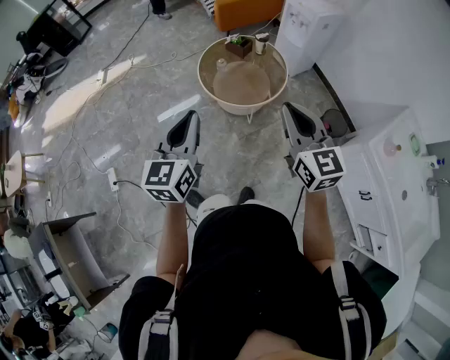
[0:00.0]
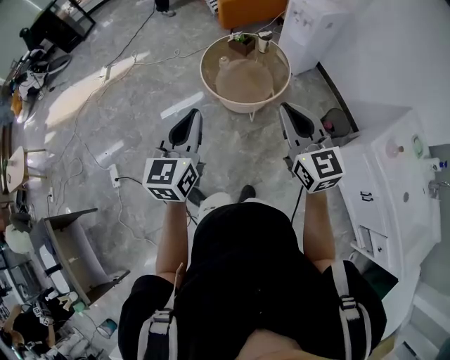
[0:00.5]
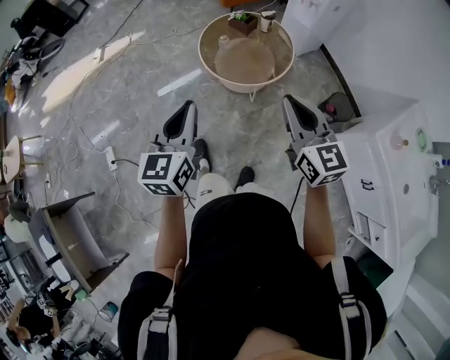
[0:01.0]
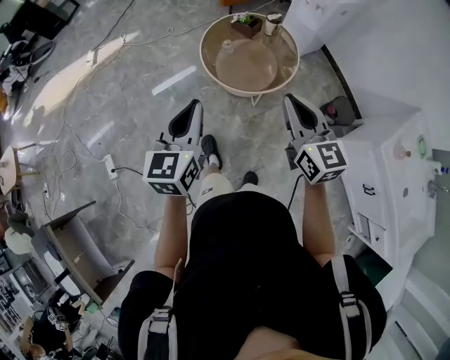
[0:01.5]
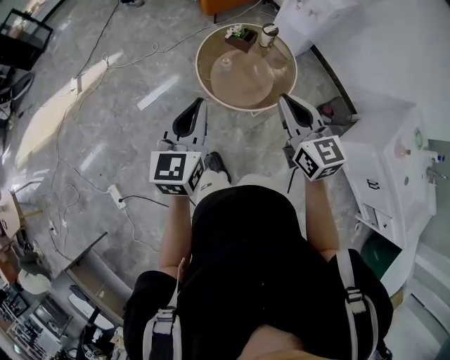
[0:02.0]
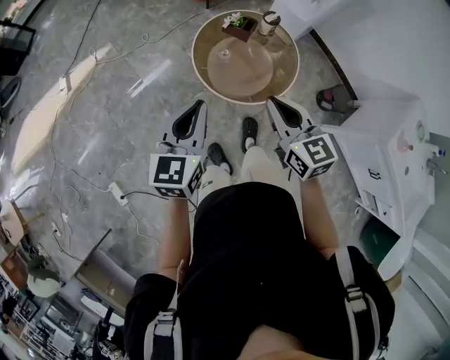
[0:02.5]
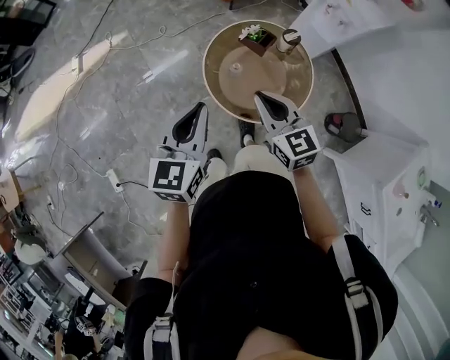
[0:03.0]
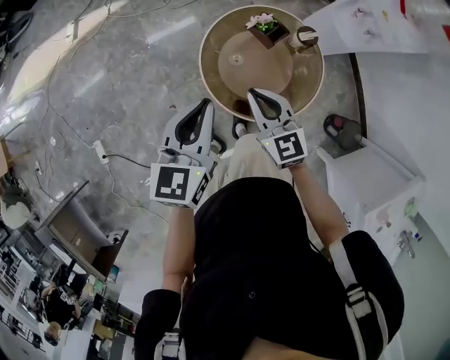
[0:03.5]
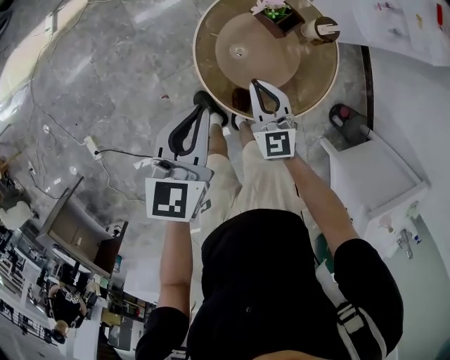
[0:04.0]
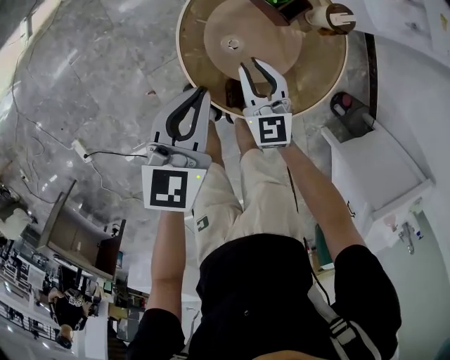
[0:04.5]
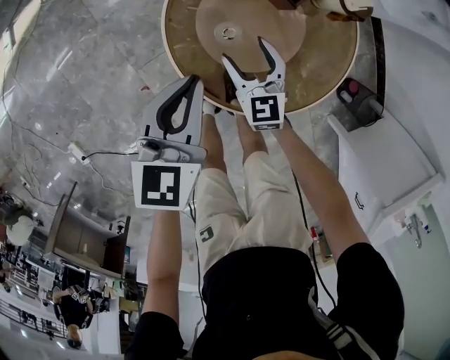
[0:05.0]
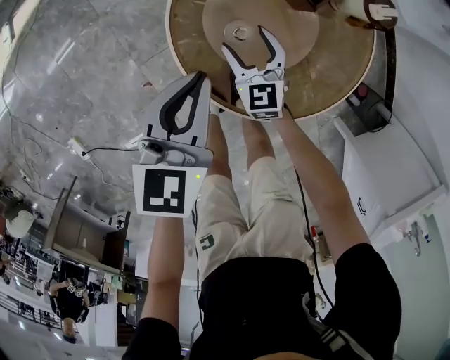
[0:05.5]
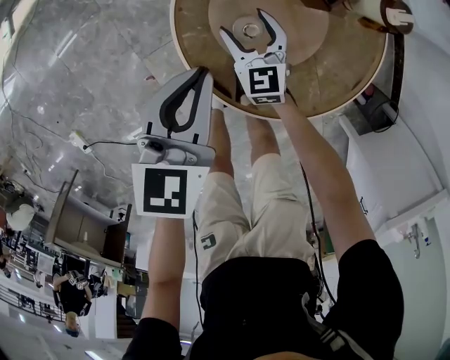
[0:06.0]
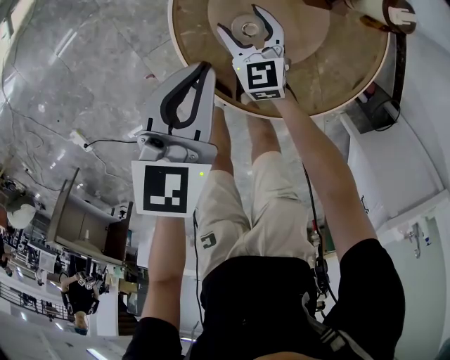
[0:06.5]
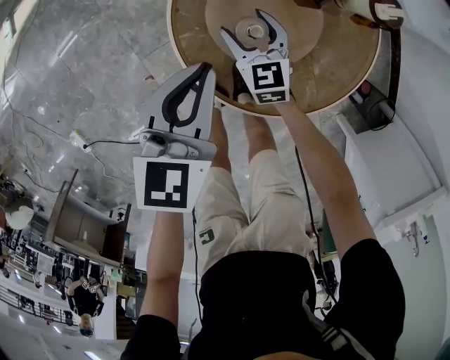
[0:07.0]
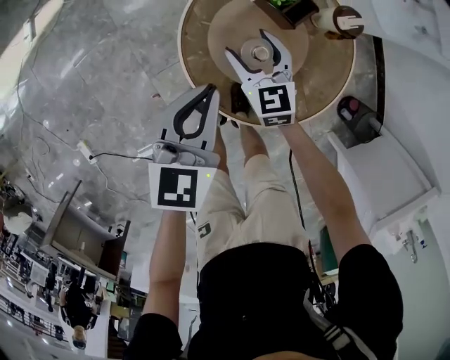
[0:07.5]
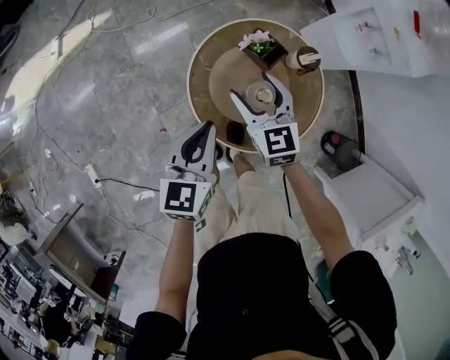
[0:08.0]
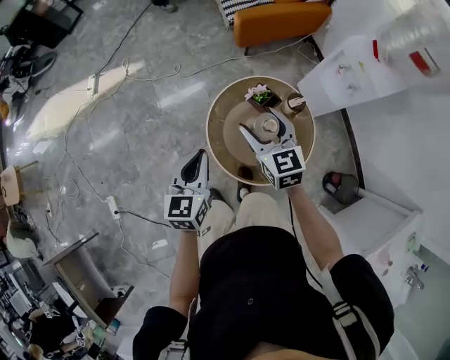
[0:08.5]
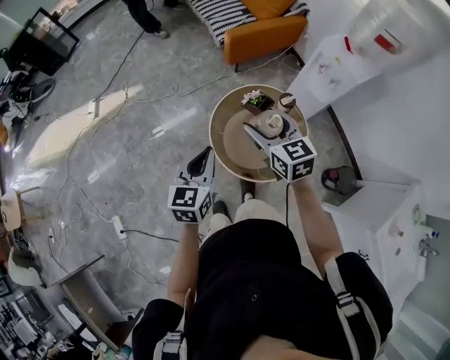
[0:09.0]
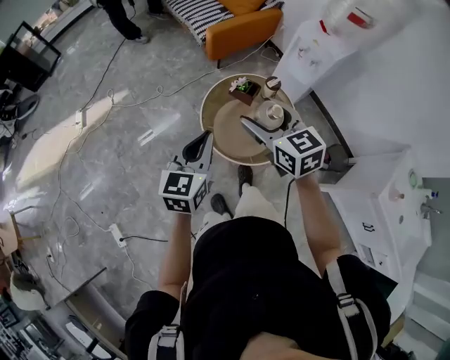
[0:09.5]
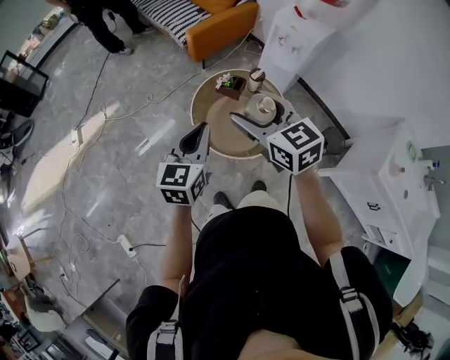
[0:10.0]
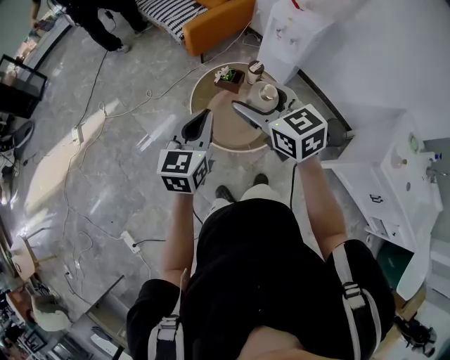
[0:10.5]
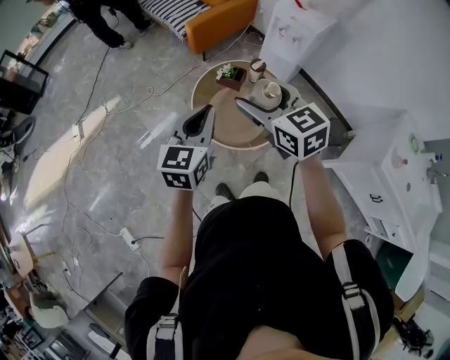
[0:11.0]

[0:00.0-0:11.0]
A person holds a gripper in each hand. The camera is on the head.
0:00.0 to 0:02.0: The grippers both shift forward and to the left by about 25 cm.
0:02.0 to 0:03.5: The two grippers go roughly 25 cm forward and downward. The right gripper rotates some 30 degrees.
0:03.5 to 0:05.5: The grippers both shift downward by some 35 cm. The right gripper opens its fingers.
0:05.5 to 0:07.5: The left gripper is displaced upward by roughly 10 cm. Meanwhile the right gripper shifts some 15 cm upward.
0:07.5 to 0:09.0: The right gripper moves upward, some 40 cm, while the left gripper travels upward and backward by about 30 cm.
0:09.0 to 0:11.0: The right gripper moves backward and upward, approximately 15 cm. Meanwhile the left gripper shifts approximately 10 cm upward.

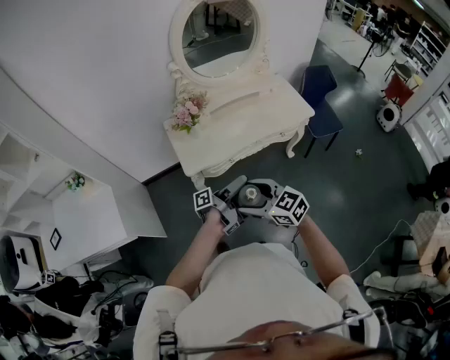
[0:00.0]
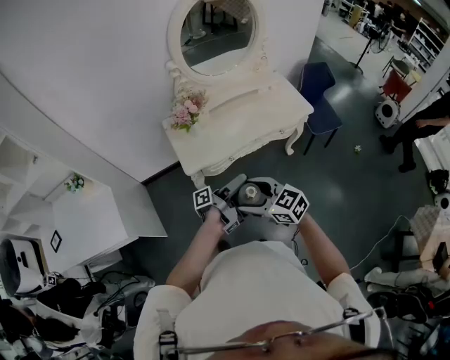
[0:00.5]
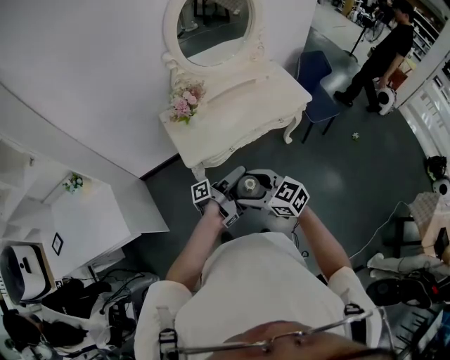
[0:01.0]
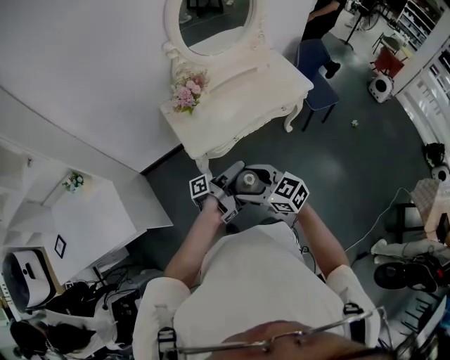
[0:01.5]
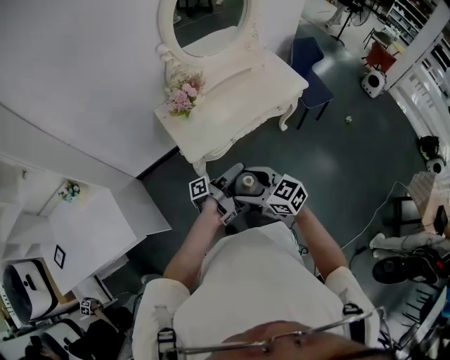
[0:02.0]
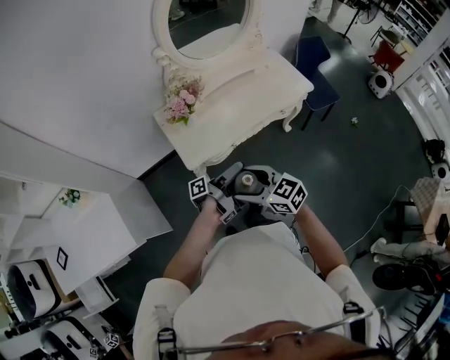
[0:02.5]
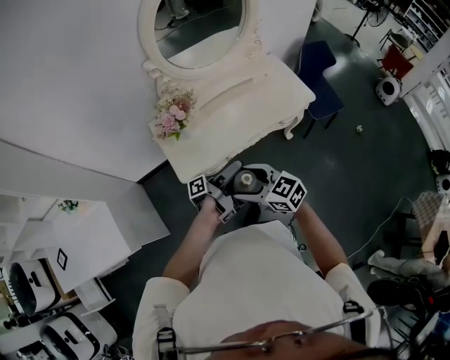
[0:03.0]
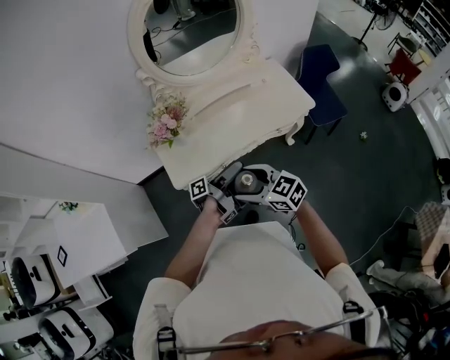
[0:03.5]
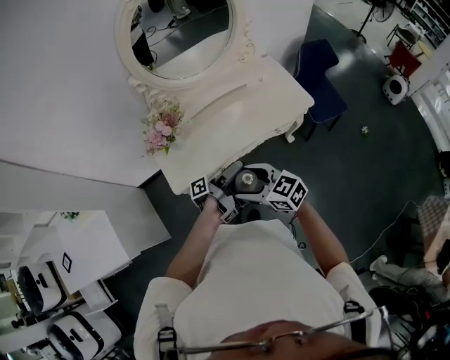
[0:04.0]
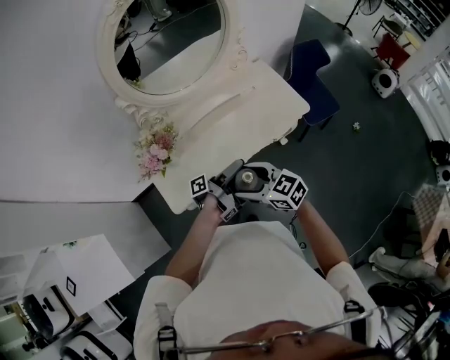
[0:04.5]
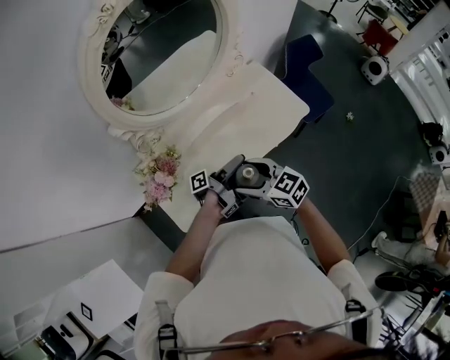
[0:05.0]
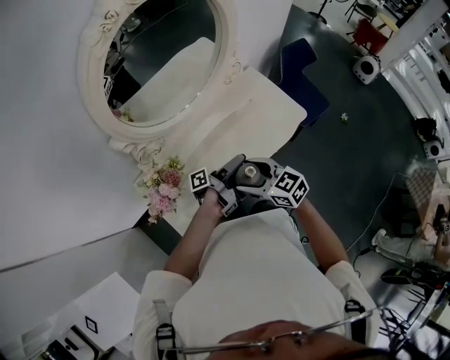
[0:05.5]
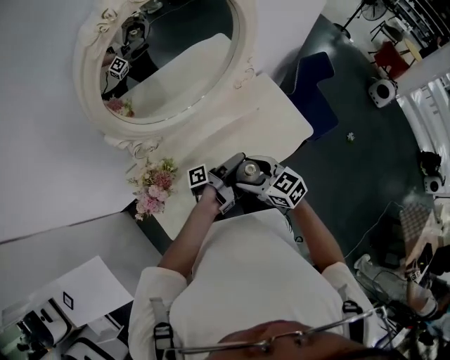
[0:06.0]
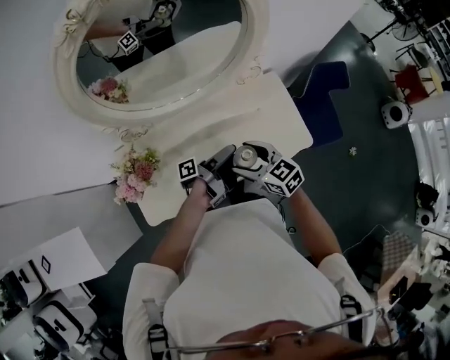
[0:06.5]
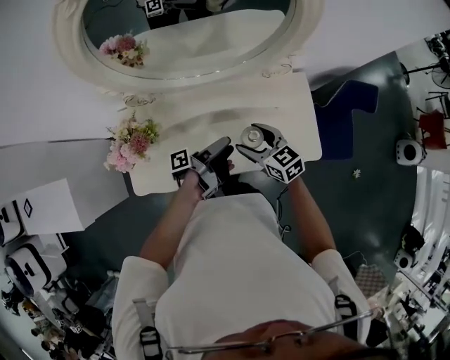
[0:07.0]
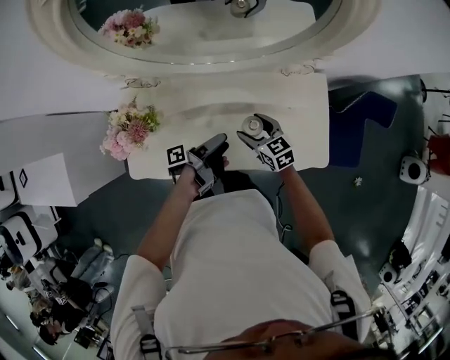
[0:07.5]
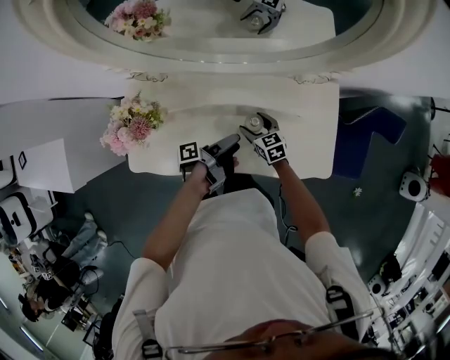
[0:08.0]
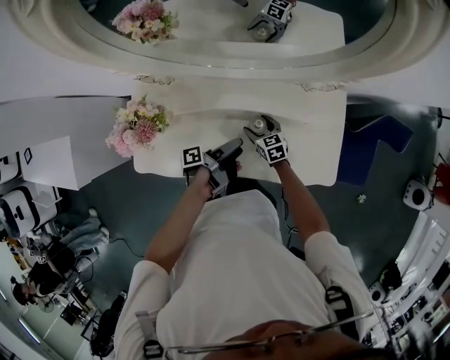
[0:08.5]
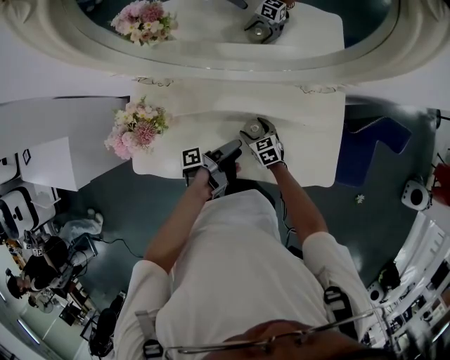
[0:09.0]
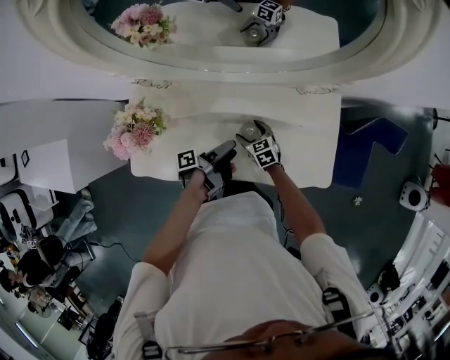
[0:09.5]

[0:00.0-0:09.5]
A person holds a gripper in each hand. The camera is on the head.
0:00.0 to 0:02.0: The right gripper changes place by roughly 10 cm.
0:02.0 to 0:04.0: The right gripper changes place by some 25 cm.
0:04.0 to 0:05.5: The right gripper changes place by about 25 cm.
0:05.5 to 0:07.5: The right gripper changes place by about 30 cm, and swivels roughly 20 degrees.
0:07.5 to 0:09.5: The right gripper goes approximately 15 cm downward.

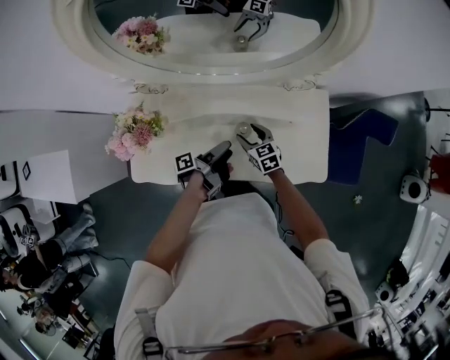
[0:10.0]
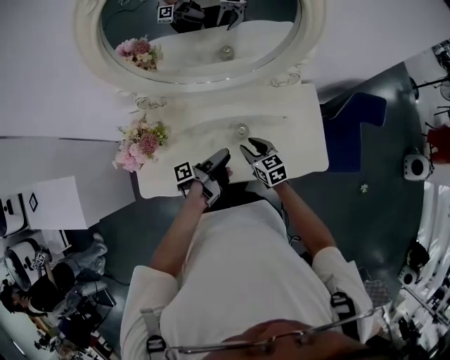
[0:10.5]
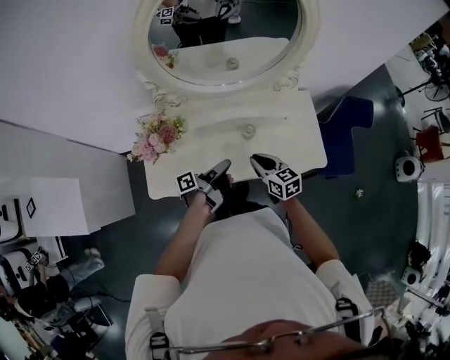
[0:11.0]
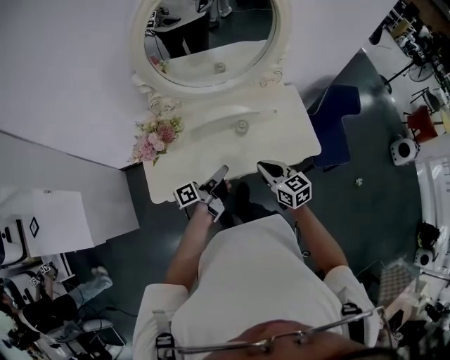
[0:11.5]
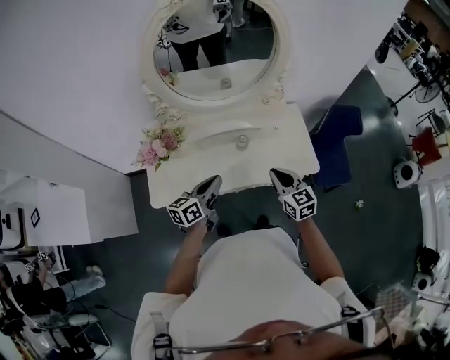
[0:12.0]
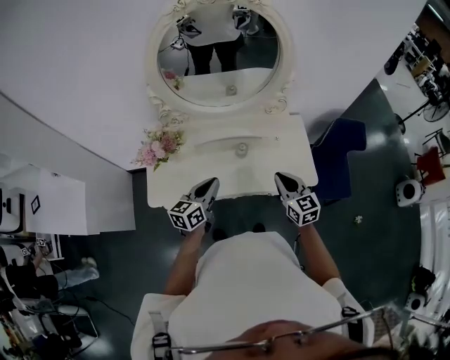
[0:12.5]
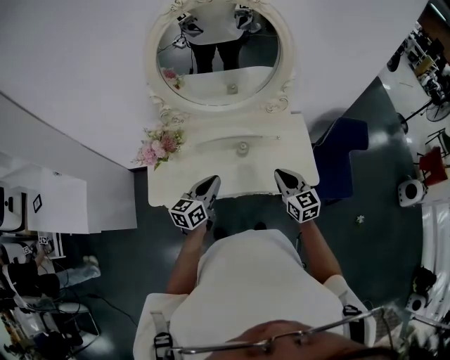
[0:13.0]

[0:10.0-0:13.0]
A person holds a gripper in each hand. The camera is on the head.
0:10.0 to 0:11.5: The right gripper ends up some 30 cm from where it was, and closes.
0:11.5 to 0:13.0: The right gripper changes place by approximately 10 cm.

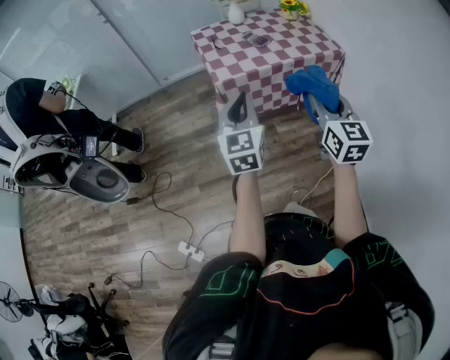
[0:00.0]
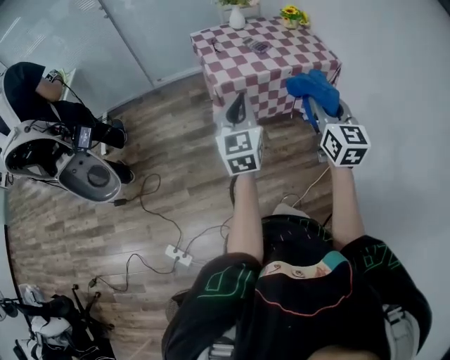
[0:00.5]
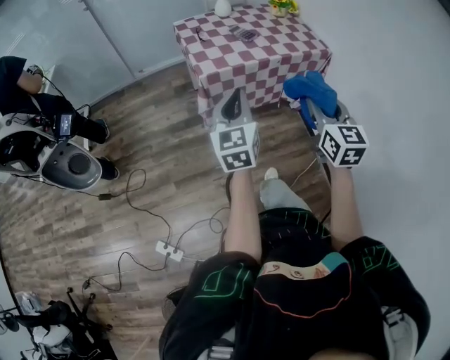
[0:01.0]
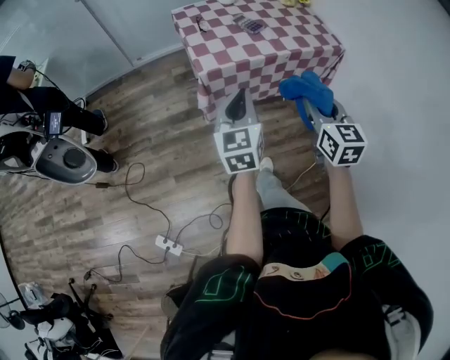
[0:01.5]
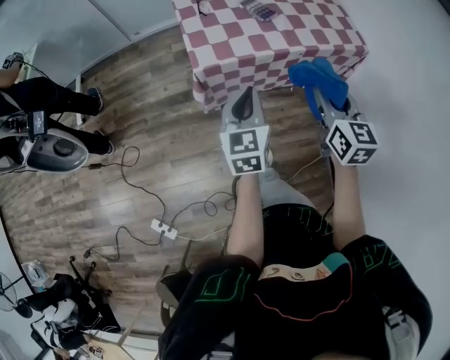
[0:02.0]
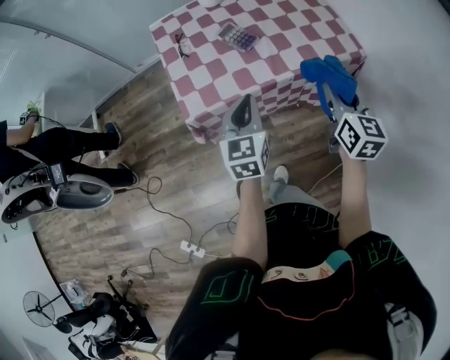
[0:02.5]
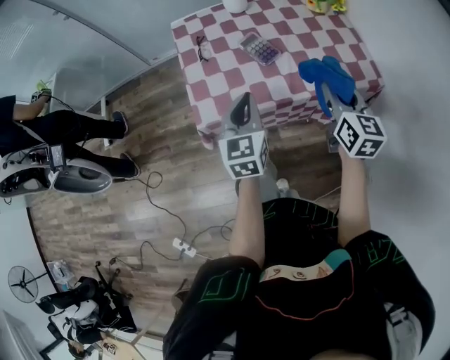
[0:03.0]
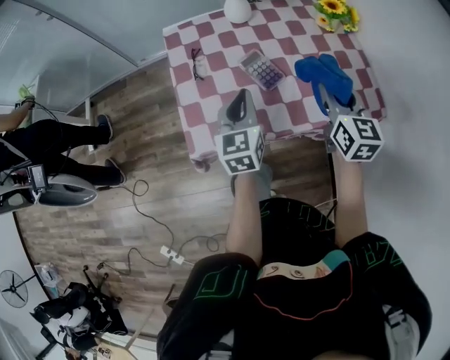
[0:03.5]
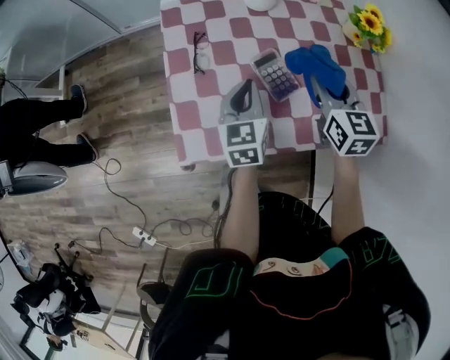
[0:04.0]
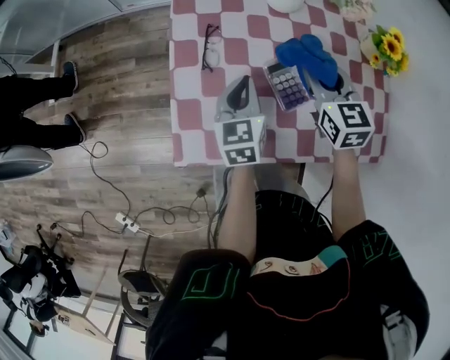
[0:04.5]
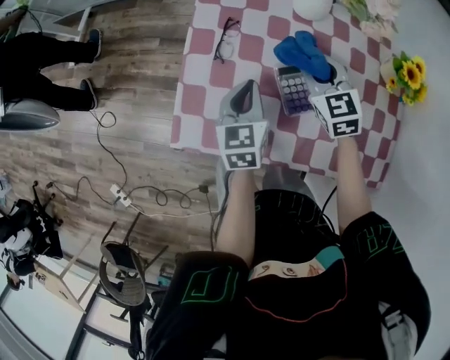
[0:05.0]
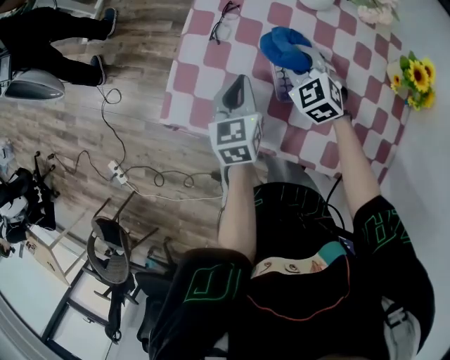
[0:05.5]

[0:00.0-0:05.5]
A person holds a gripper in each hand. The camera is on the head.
0:00.0 to 0:02.0: The two grippers go some 25 cm forward and downward.
0:02.0 to 0:03.5: The grippers both shift forward by about 30 cm.
0:03.5 to 0:05.5: The right gripper shifts by some 30 cm, and rotates approximately 70 degrees, while the left gripper goes roughly 10 cm downward, and rotates approximately 30 degrees.
